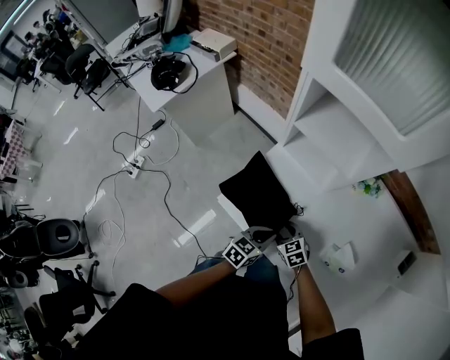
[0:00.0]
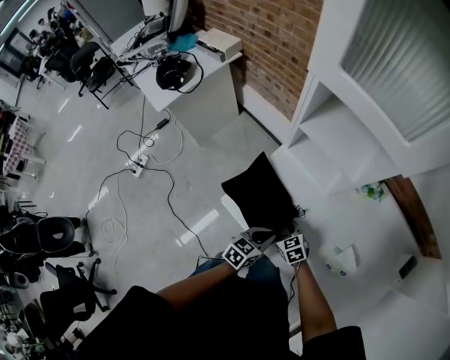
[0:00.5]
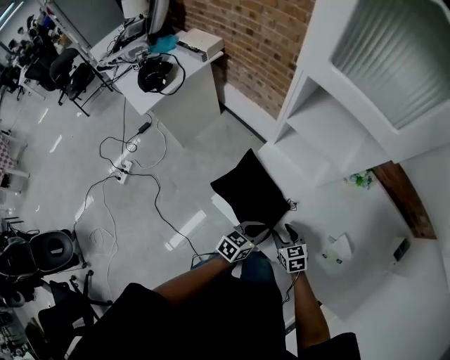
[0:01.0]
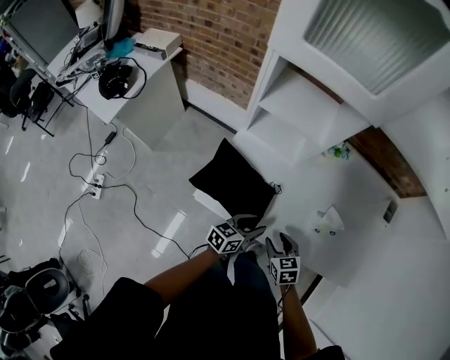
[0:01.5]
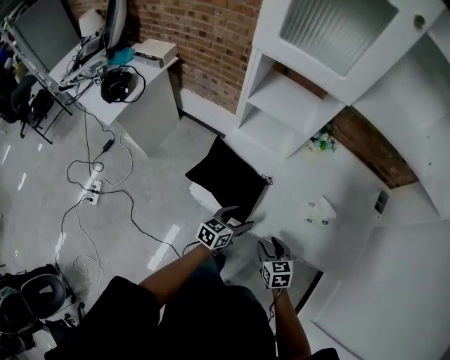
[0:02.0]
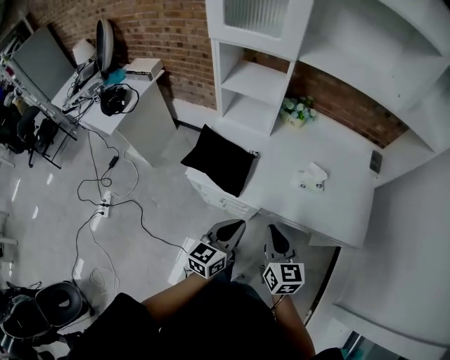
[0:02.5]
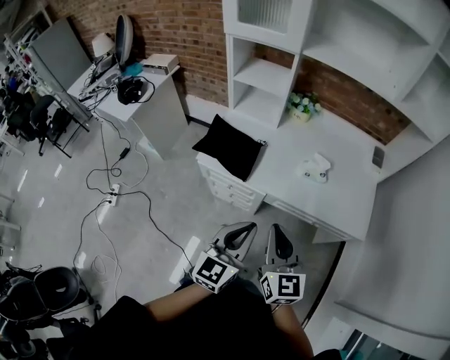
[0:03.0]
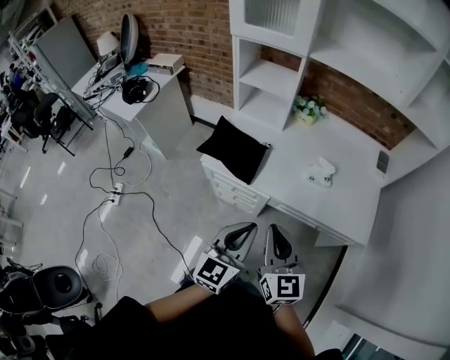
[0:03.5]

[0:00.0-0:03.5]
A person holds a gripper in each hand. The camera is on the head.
0:00.0 to 0:02.0: The left gripper moves about 5 cm, and opens; the right gripper moves some 20 cm, and changes its angle by some 40 degrees.
0:02.0 to 0:03.5: The left gripper shifts roughly 35 cm backward and upward, swivels about 30 degrees, and closes; the right gripper is displaced upward and backward by roughly 30 cm, tilts its fingers approximately 40 degrees upward, and closes up.

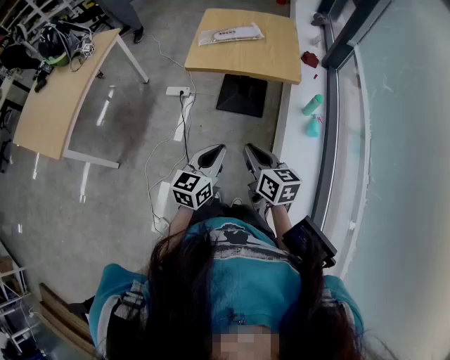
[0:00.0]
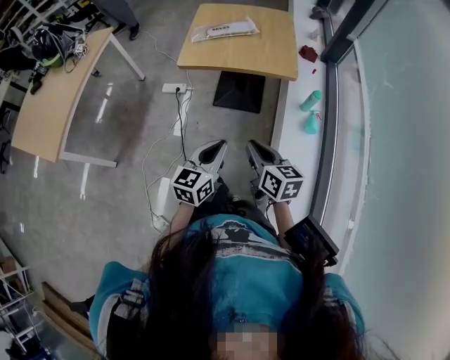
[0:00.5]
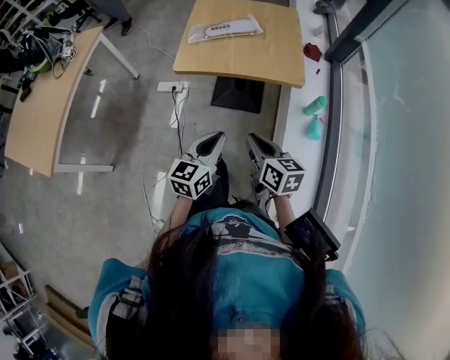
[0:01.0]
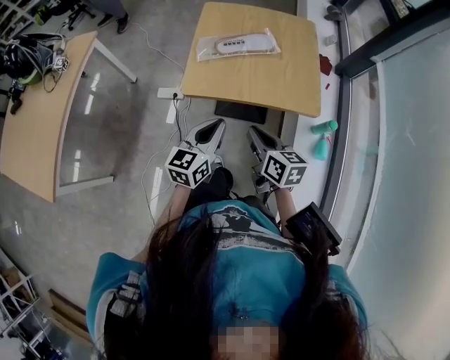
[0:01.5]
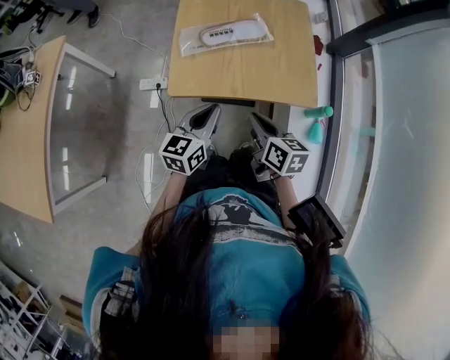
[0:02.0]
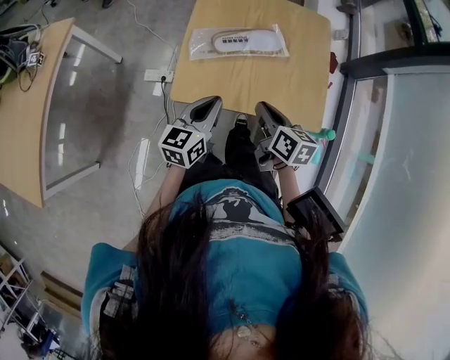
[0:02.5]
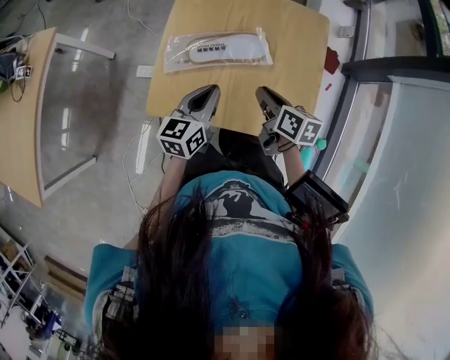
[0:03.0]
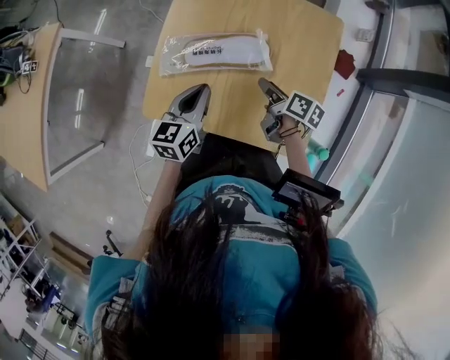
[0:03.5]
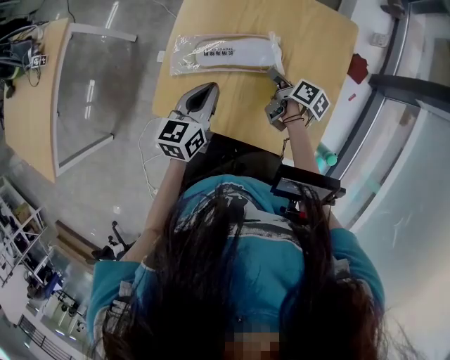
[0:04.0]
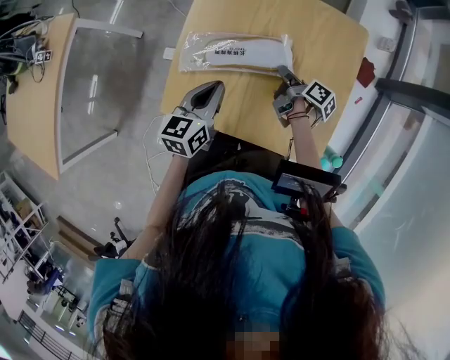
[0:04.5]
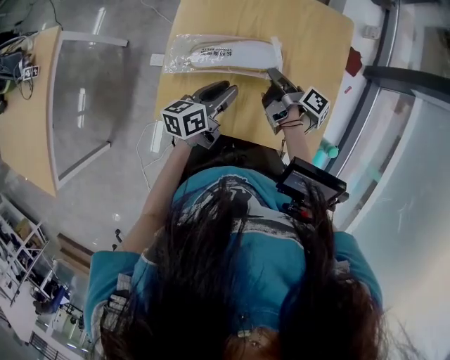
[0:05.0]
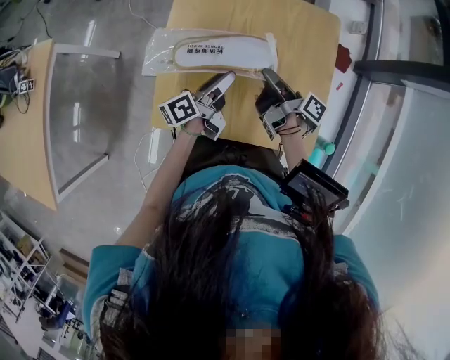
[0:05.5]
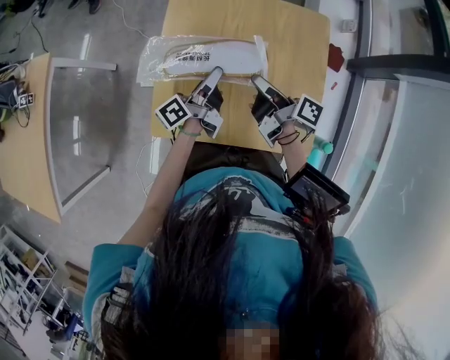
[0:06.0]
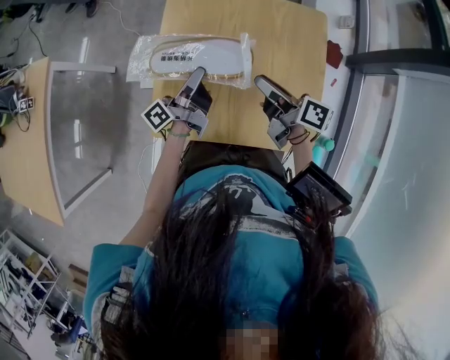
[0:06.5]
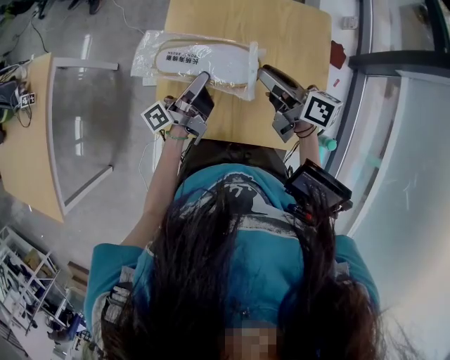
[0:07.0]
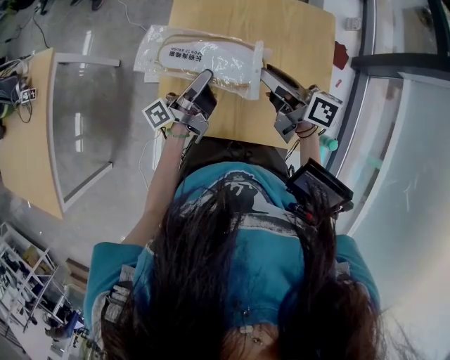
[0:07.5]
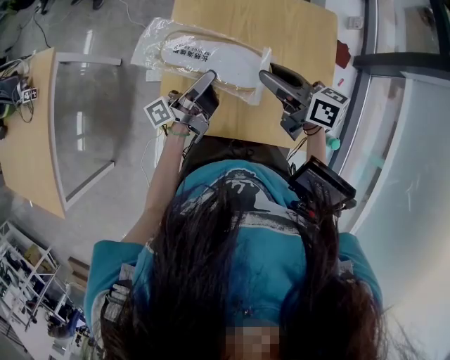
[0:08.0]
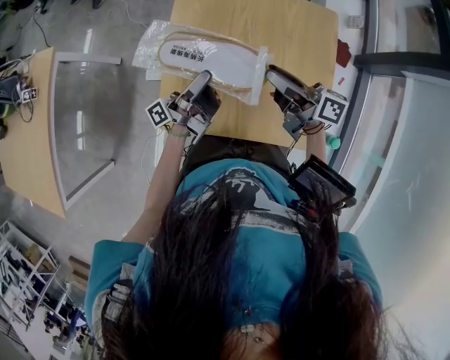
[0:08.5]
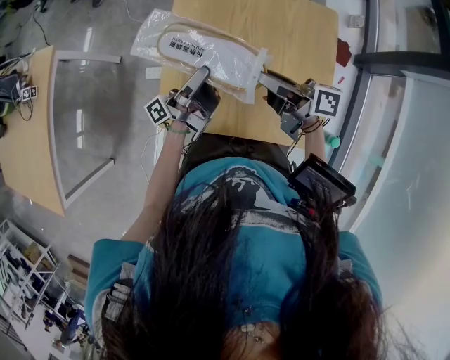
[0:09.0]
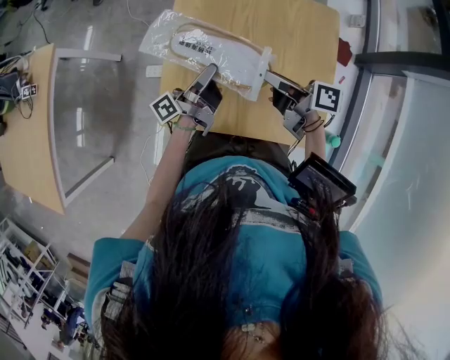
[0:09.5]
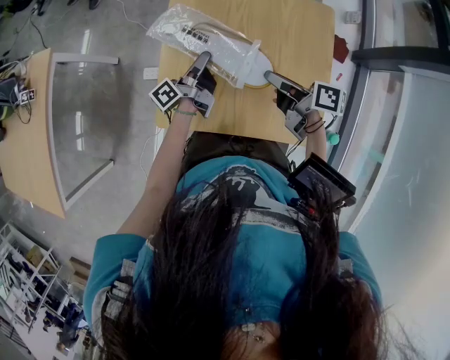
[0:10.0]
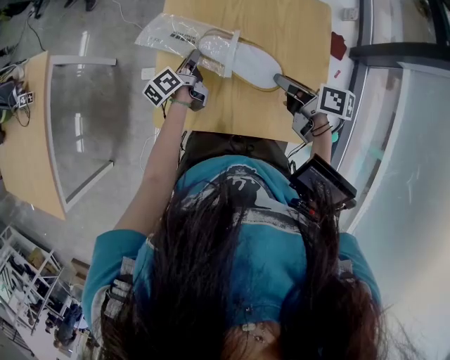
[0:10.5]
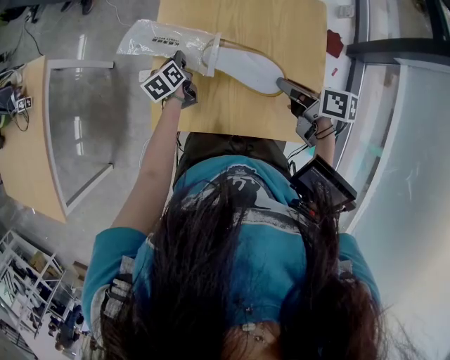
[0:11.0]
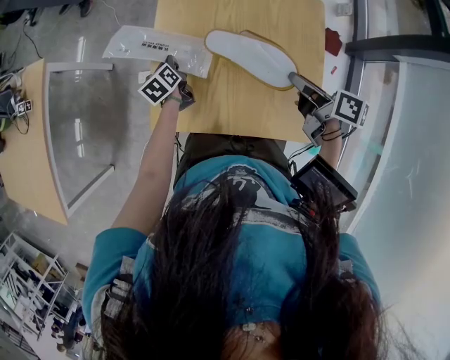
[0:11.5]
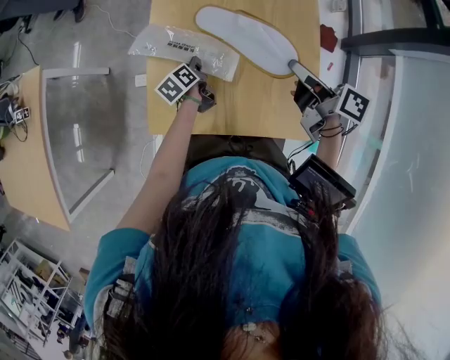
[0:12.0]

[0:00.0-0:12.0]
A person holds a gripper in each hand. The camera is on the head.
0:00.0 to 0:02.0: Both grippers are carried forward, roughly 50 cm.
0:02.0 to 0:04.0: The left gripper heads forward and to the right, covering about 30 cm, and turns by about 20 degrees. The right gripper heads forward, downward and to the right, covering approximately 40 cm, changes its angle by approximately 40 degrees, and opens its fingers.
0:04.0 to 0:06.0: The left gripper moves forward, approximately 5 cm, rotates around the line of its fingers by about 50 degrees, counterclockwise from behind, and opens its fingers. Meanwhile the right gripper heads upward, covering approximately 15 cm, changes its angle by roughly 30 degrees, and closes.
0:06.0 to 0:08.0: The right gripper is displaced upward by some 5 cm, turns by approximately 40 degrees, and opens up. Meanwhile the left gripper changes place by about 5 cm.
0:08.0 to 0:10.0: The right gripper goes some 5 cm downward, and rotates approximately 20 degrees; the left gripper moves downward and forward, some 10 cm, and swivels some 20 degrees.
0:10.0 to 0:12.0: The right gripper heads to the right and upward, covering about 10 cm; the left gripper heads downward, covering about 10 cm, and angles its fingers downward, by roughly 40 degrees.

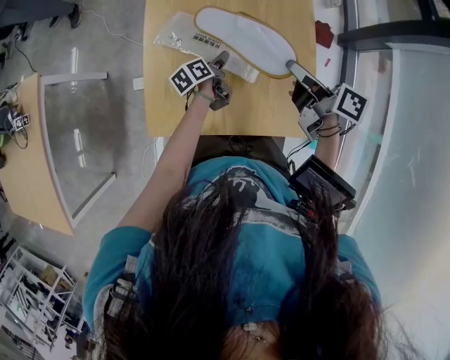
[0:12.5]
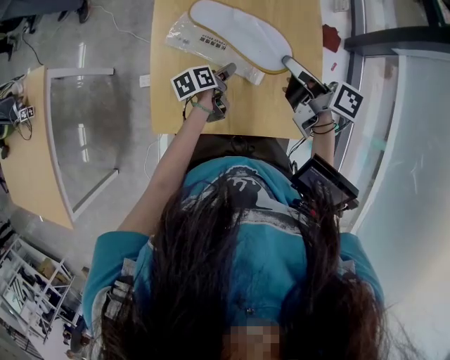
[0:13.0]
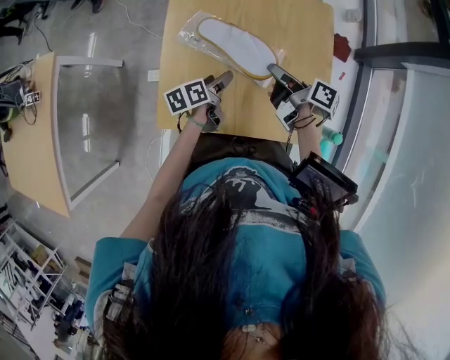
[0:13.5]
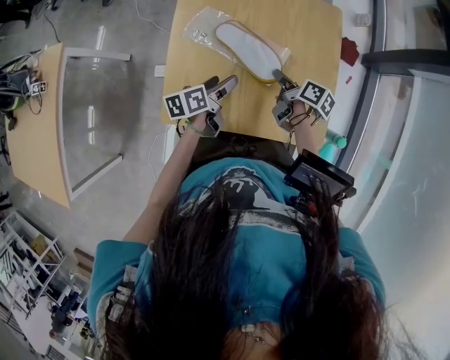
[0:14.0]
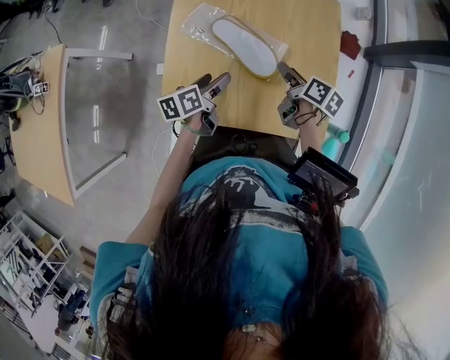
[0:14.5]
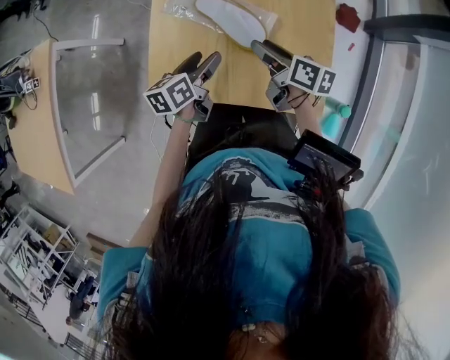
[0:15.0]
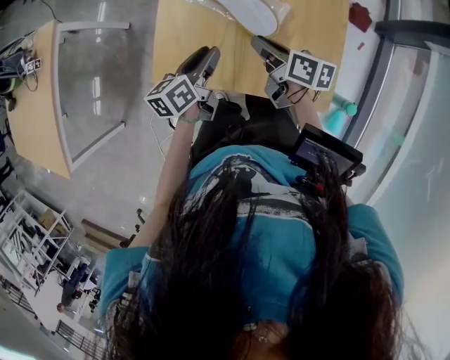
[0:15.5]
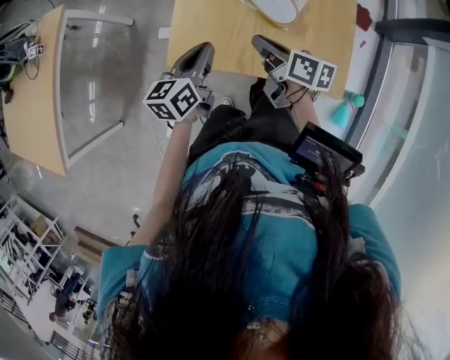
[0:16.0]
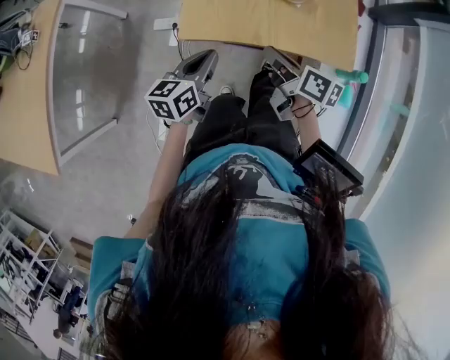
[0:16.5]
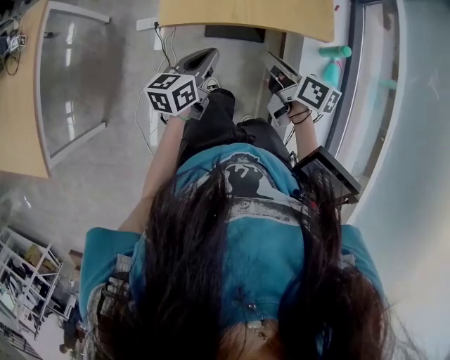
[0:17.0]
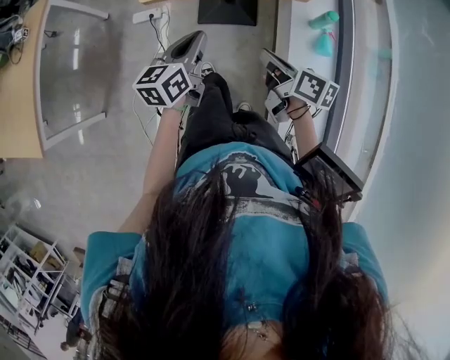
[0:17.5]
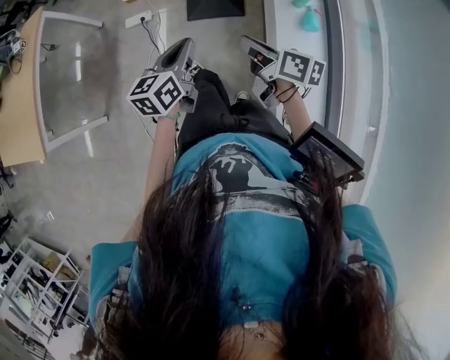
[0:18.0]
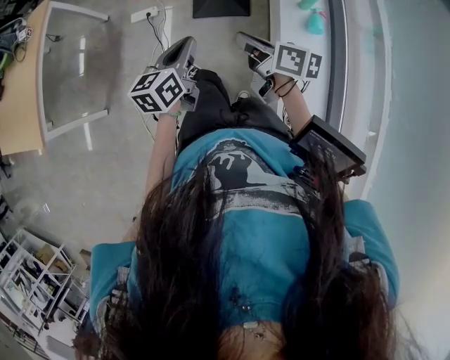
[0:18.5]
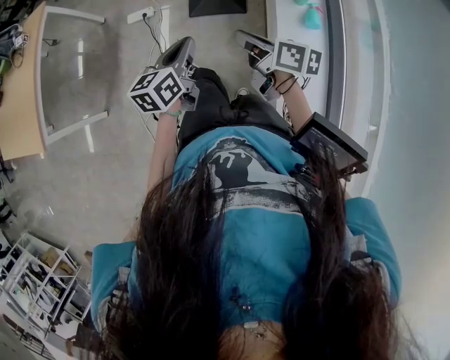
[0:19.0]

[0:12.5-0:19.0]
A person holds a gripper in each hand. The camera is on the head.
0:12.5 to 0:14.5: The right gripper shifts roughly 15 cm downward, and opens, while the left gripper heads backward, upward and to the left, covering approximately 15 cm, and opens its fingers.
0:14.5 to 0:17.0: The grippers both shift backward by approximately 35 cm. The left gripper changes its angle by some 30 degrees, and closes up. The right gripper closes.
0:17.0 to 0:19.0: The grippers both shift backward by some 25 cm.

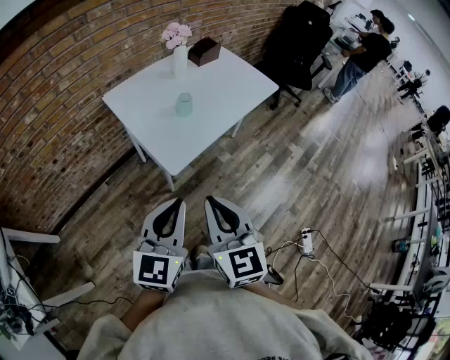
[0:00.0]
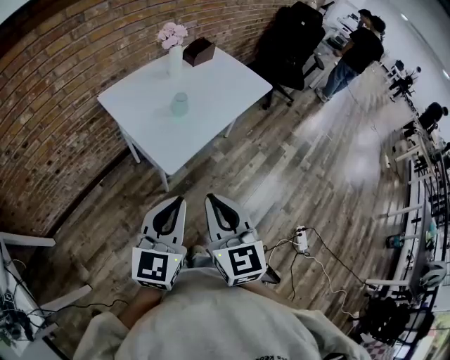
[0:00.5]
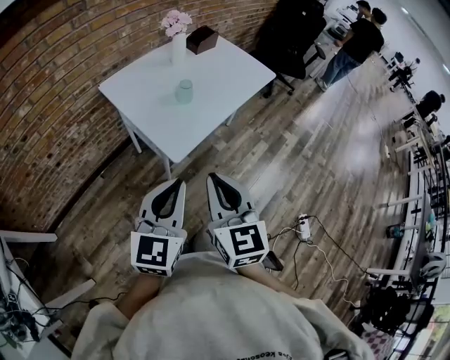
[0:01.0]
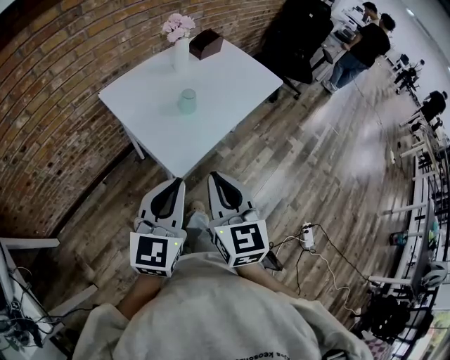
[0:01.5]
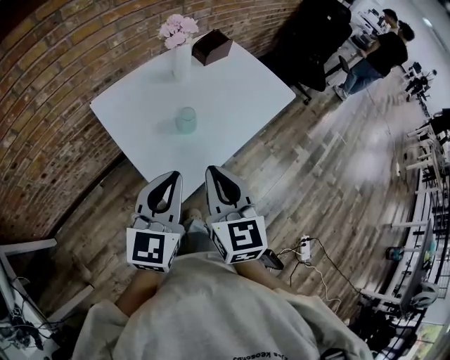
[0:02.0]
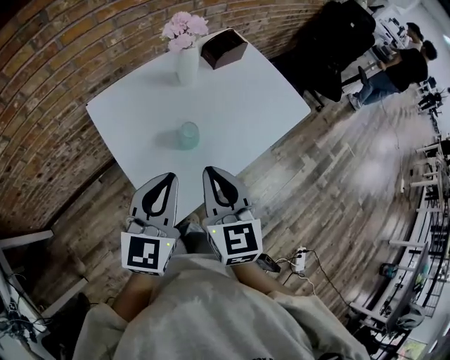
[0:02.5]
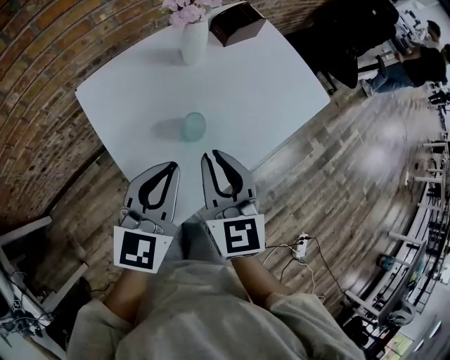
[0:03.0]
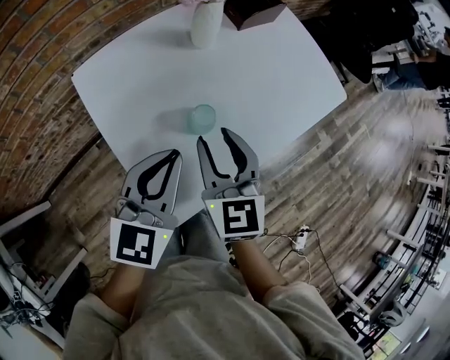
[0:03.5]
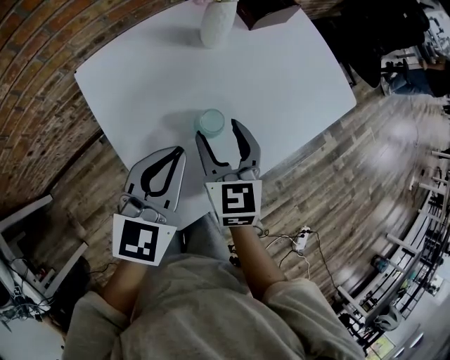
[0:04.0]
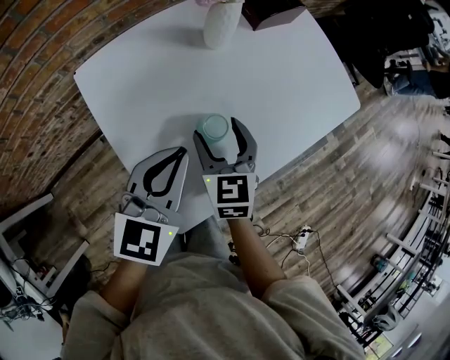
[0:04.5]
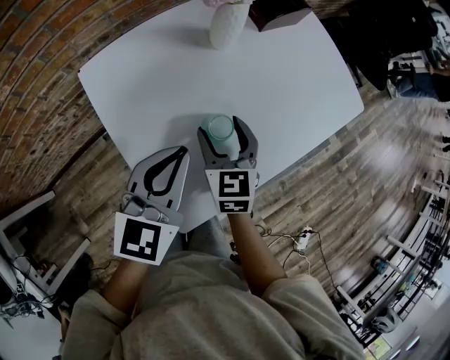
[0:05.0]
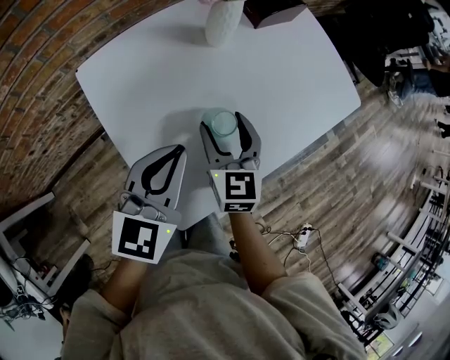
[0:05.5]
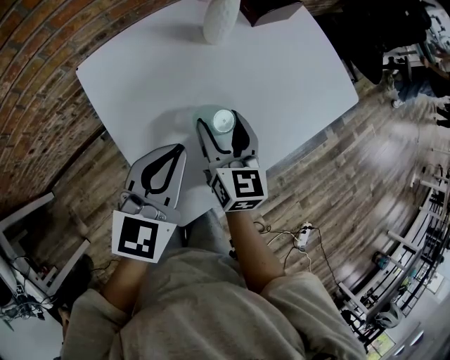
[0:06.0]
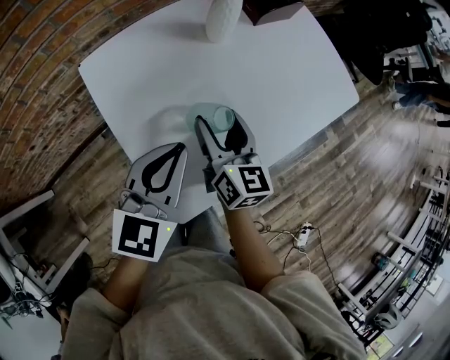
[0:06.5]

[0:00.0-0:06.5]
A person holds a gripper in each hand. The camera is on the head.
0:00.0 to 0:02.0: The grippers both shift forward by some 20 cm.
0:02.0 to 0:04.5: Both grippers move forward and downward, about 25 cm. The right gripper opens.
0:04.5 to 0:06.5: The right gripper rotates roughly 30 degrees.
